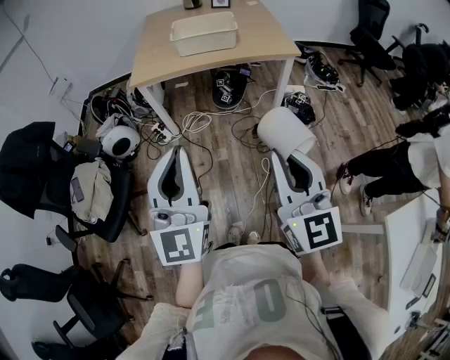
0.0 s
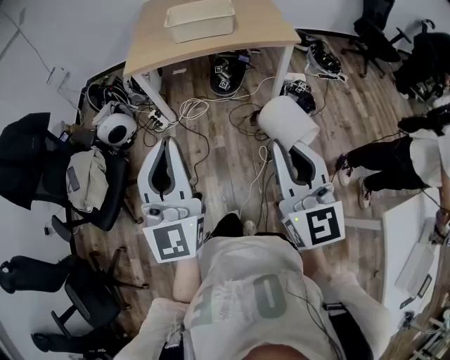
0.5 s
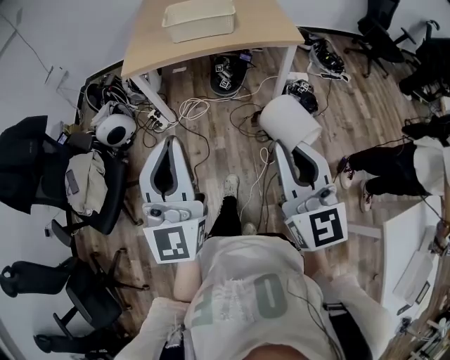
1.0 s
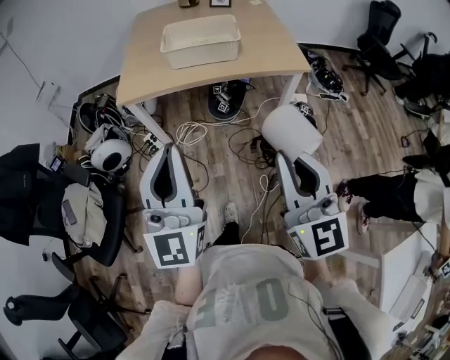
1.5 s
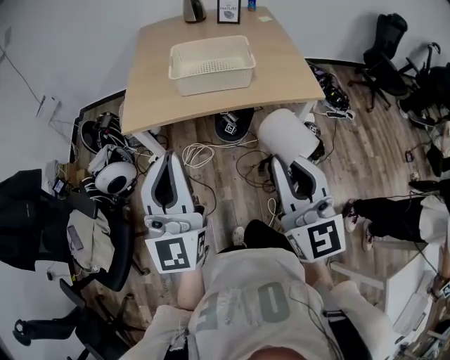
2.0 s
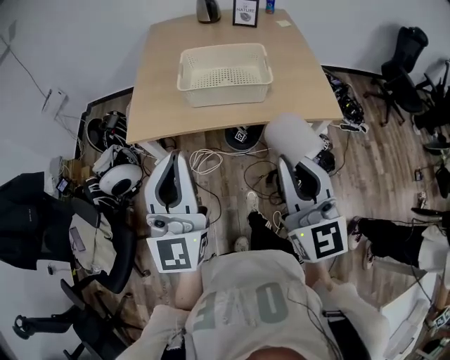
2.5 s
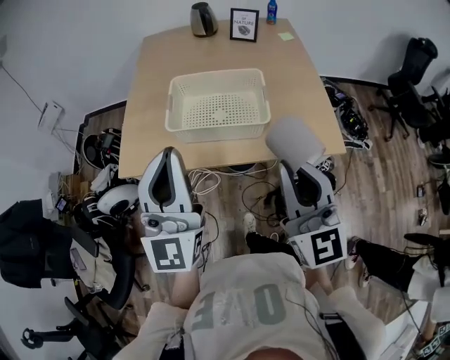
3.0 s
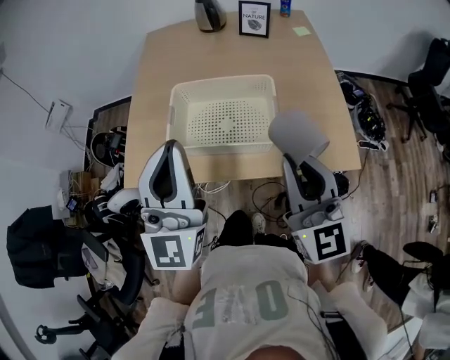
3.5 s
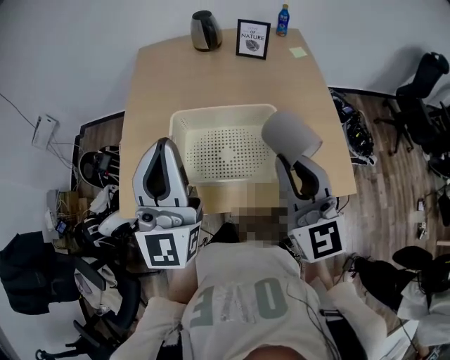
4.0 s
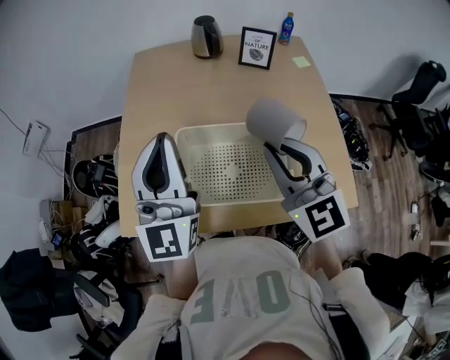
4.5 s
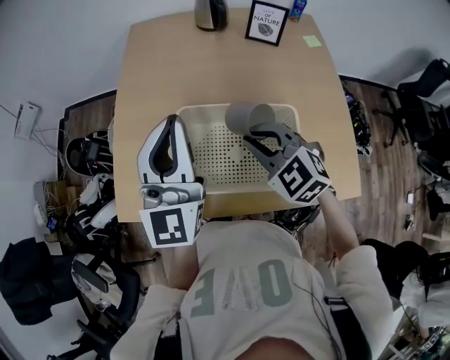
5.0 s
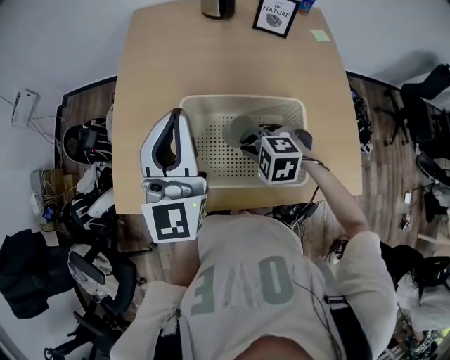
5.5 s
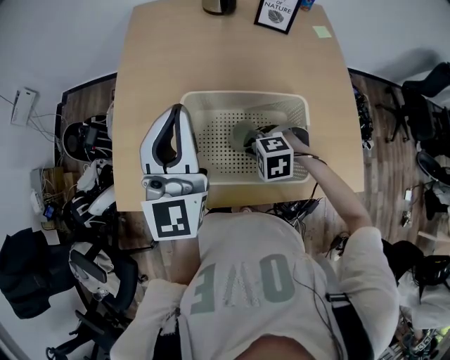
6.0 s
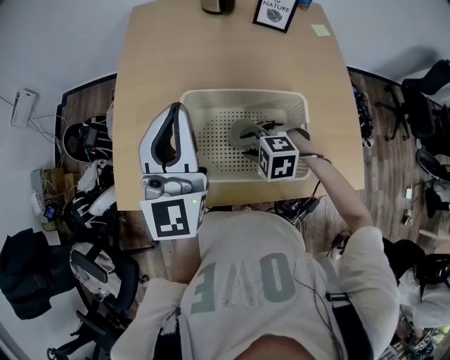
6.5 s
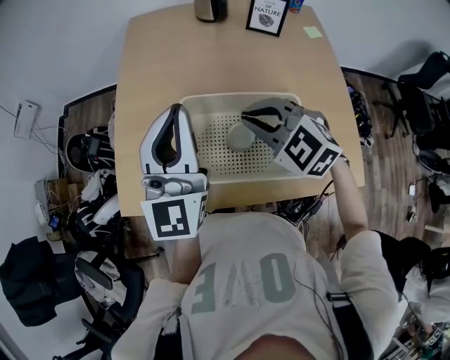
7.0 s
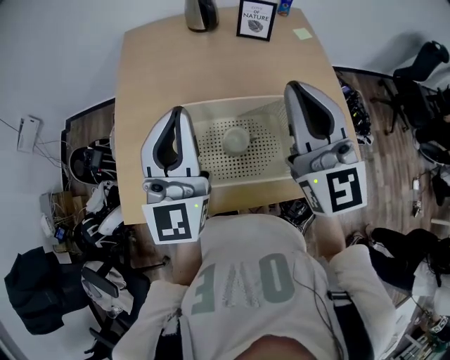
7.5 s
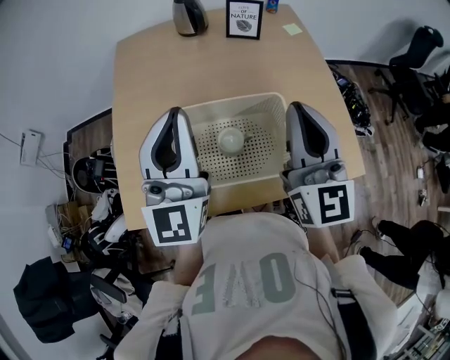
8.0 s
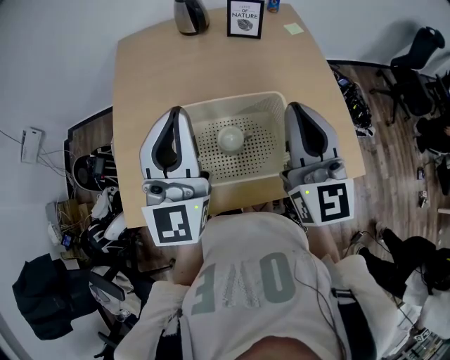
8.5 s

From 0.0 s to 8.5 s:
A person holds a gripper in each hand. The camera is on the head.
From 0.0 s to 2.0 s: Both grippers travel together forward, approximately 30 cm.
From 2.0 s to 4.0 s: Both grippers are carried forward, about 50 cm.
From 4.0 s to 6.5 s: The left gripper ends up about 15 cm from where it was, while the right gripper shifts about 30 cm downward, points its fingers some 70 degrees further downward, and opens its fingers.
From 6.5 s to 8.5 s: The left gripper changes place by roughly 10 cm, while the right gripper moves upward, approximately 30 cm, tilts its fingers about 80 degrees upward, and closes.

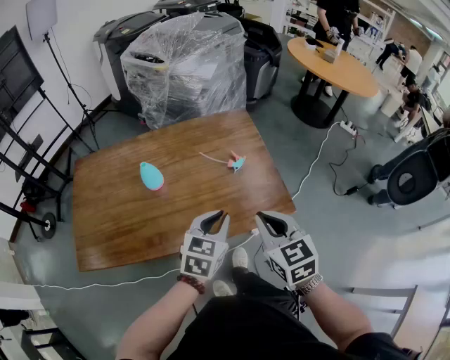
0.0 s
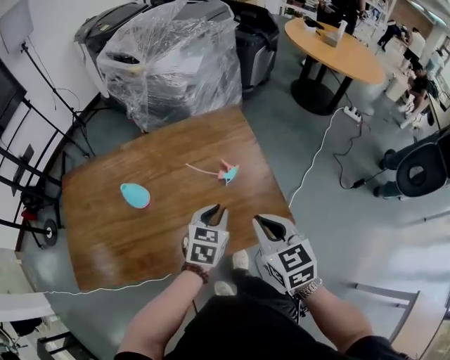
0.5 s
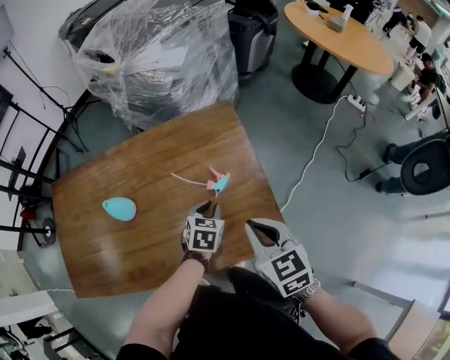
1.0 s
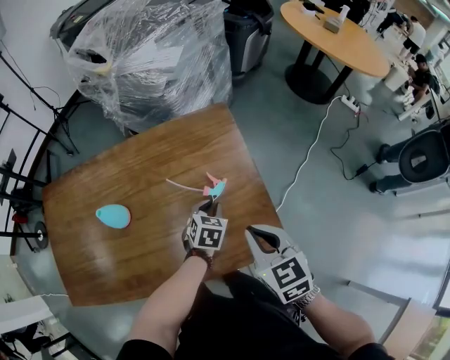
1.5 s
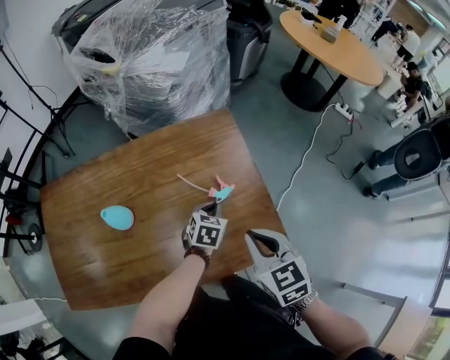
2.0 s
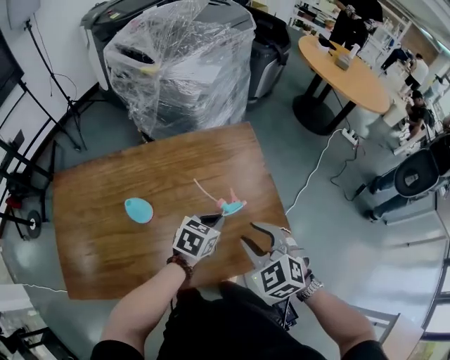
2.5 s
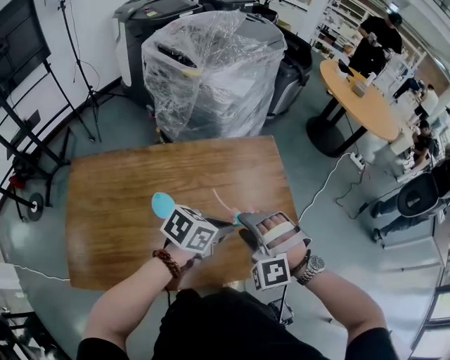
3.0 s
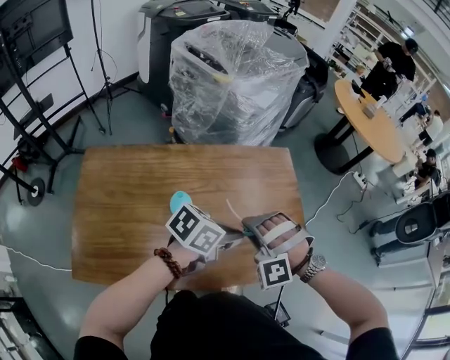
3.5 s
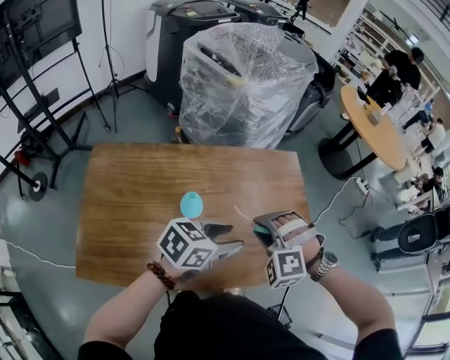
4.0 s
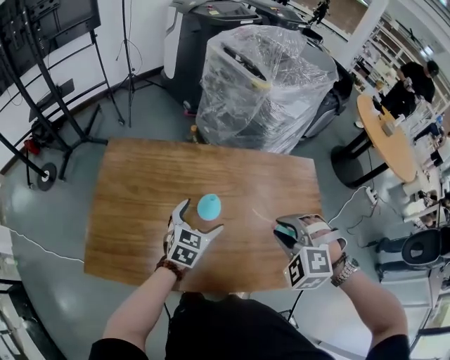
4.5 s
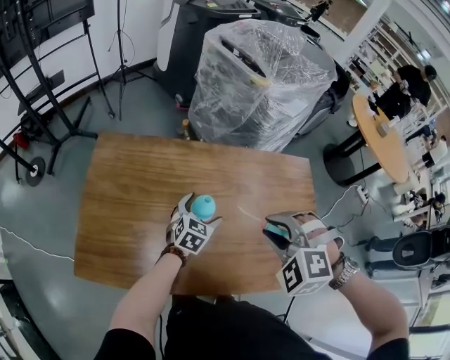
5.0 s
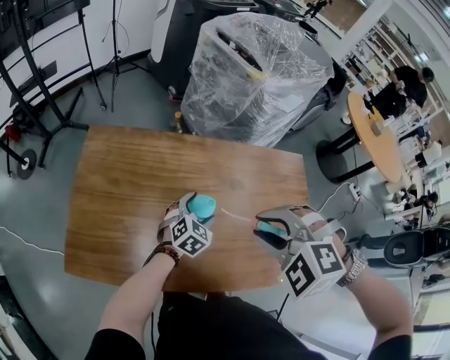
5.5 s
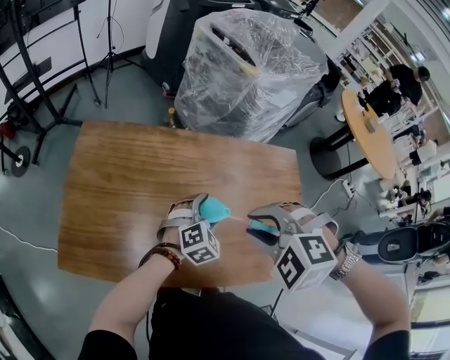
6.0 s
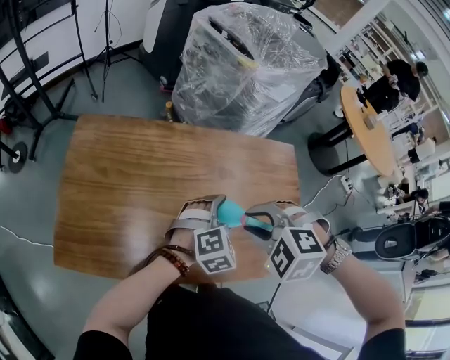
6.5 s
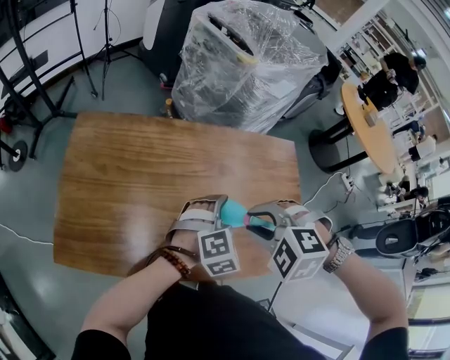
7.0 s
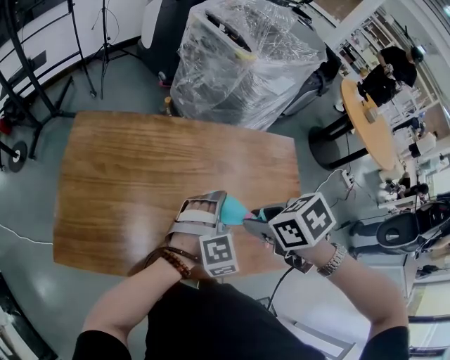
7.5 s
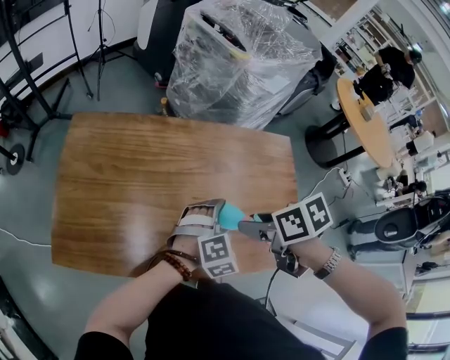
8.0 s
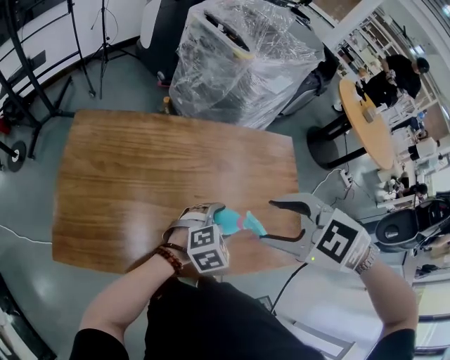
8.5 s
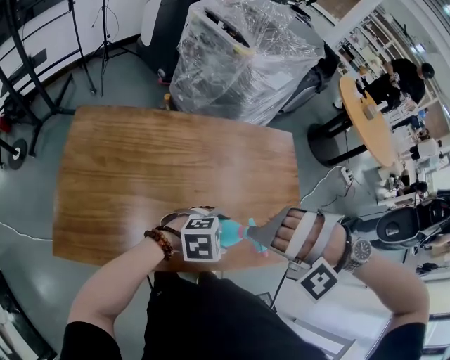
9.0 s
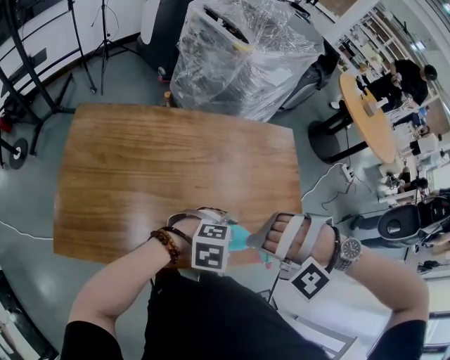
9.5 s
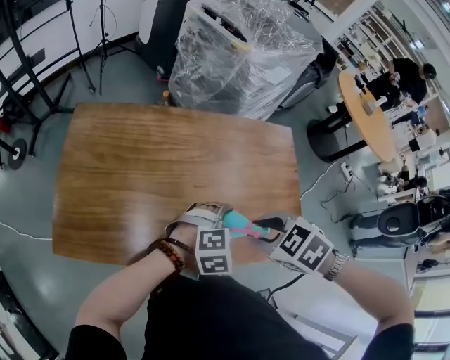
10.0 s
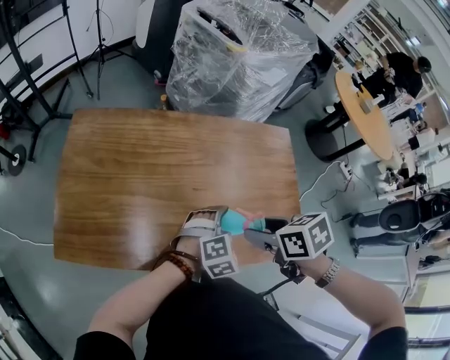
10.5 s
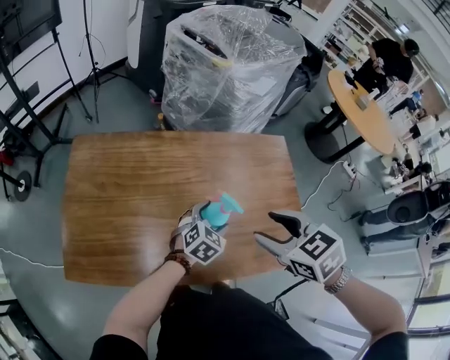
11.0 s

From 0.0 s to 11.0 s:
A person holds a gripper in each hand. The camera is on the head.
From 0.0 s to 2.0 s: The right gripper travels forward and downward by roughly 15 cm. The left gripper moves forward and downward, approximately 30 cm.
From 2.0 s to 3.5 s: The right gripper goes about 20 cm to the left, twists some 100 degrees counterclockwise, seen from behind, and opens its fingers; the left gripper moves upward, backward and to the left, approximately 25 cm, and rotates about 40 degrees.
From 3.5 s to 5.5 s: The right gripper is displaced upward by approximately 10 cm, and swivels some 30 degrees; the left gripper ends up about 25 cm from where it was, swivels roughly 60 degrees, and opens up.
From 5.5 s to 7.5 s: The left gripper is displaced upward, to the right and backward by about 15 cm, and swivels about 40 degrees. Meanwhile the right gripper shifts about 10 cm downward and to the right, and twists approximately 70 degrees clockwise, seen from behind.
From 7.5 s to 9.0 s: The right gripper travels upward and back again, about 10 cm each way, rolls counterclockwise, seen from behind, by some 120 degrees, and opens up, while the left gripper moves approximately 10 cm, and swivels some 50 degrees.
From 9.0 s to 11.0 s: The left gripper ends up roughly 10 cm from where it was, and changes its angle by some 40 degrees. Meanwhile the right gripper moves approximately 10 cm, rolls clockwise, seen from behind, by roughly 110 degrees, and closes, then reopens.

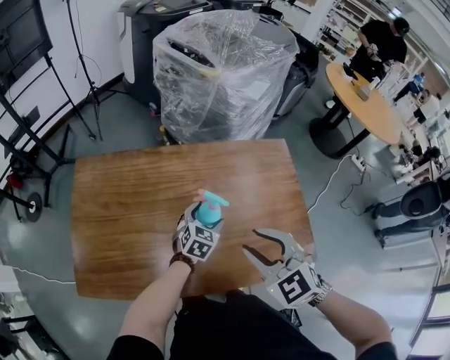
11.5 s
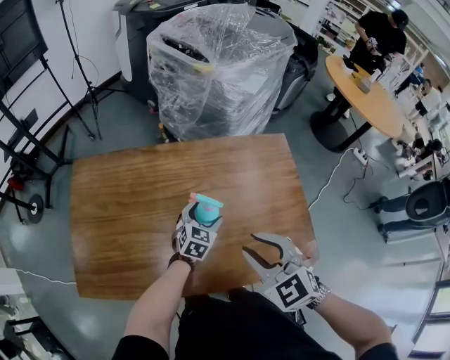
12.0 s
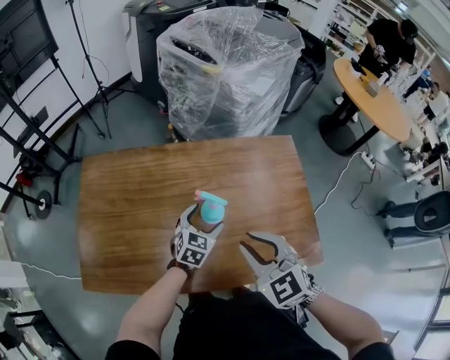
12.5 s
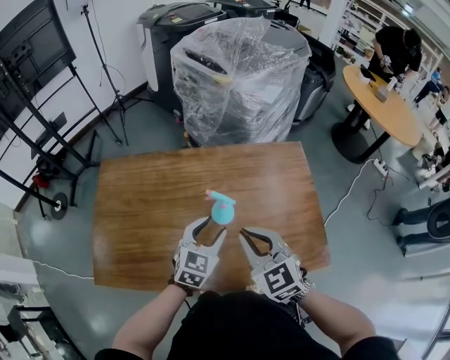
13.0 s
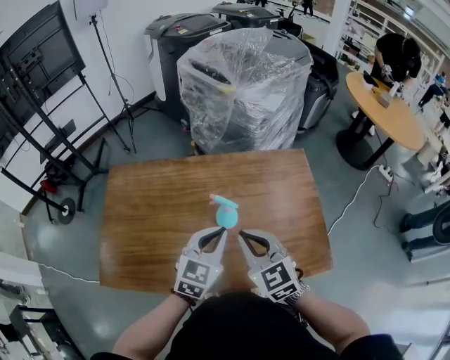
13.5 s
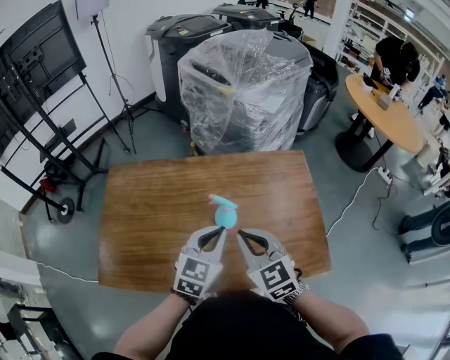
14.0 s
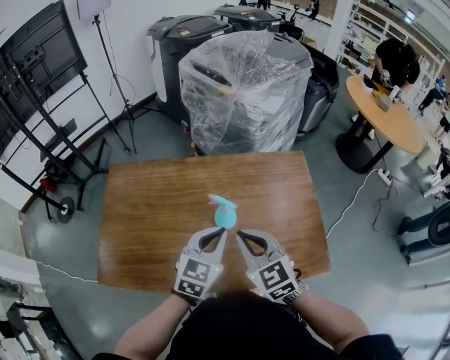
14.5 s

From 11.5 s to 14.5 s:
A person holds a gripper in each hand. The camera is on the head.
From 11.5 s to 13.0 s: The right gripper closes up; the left gripper travels upward and backward by approximately 15 cm.
From 13.0 s to 14.5 s: The left gripper travels upward by approximately 5 cm, and closes.

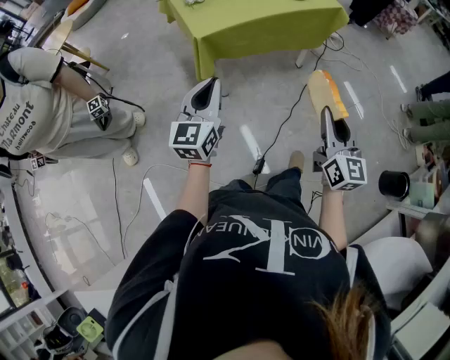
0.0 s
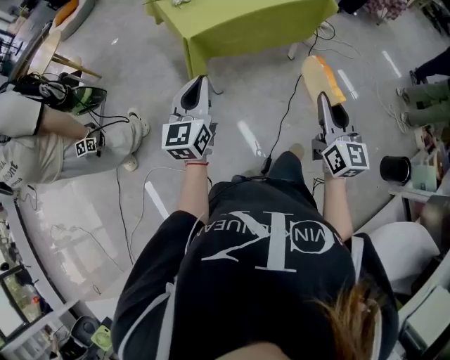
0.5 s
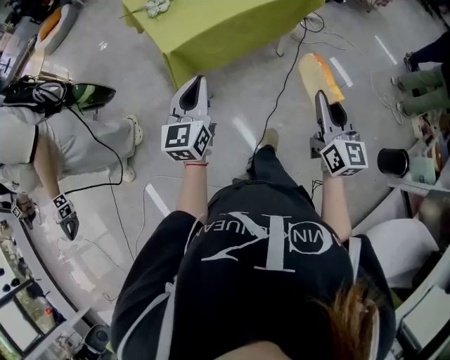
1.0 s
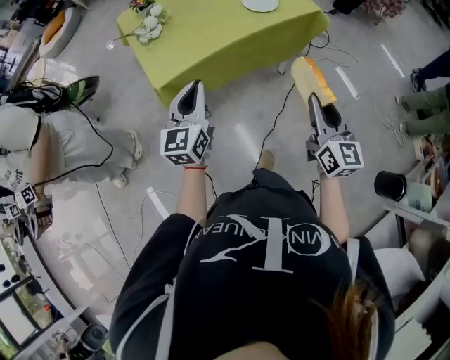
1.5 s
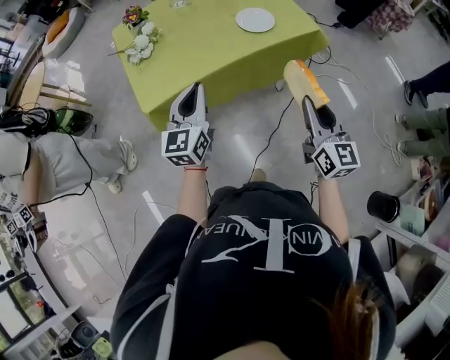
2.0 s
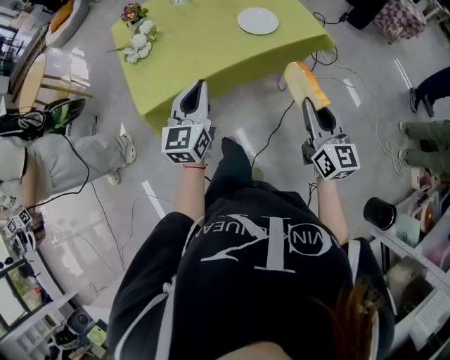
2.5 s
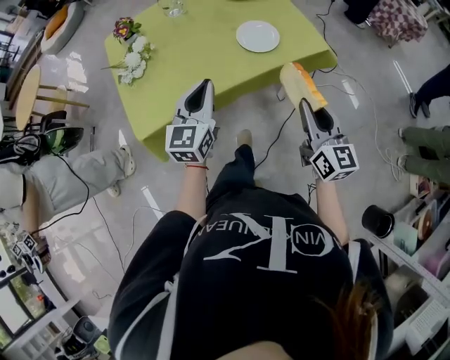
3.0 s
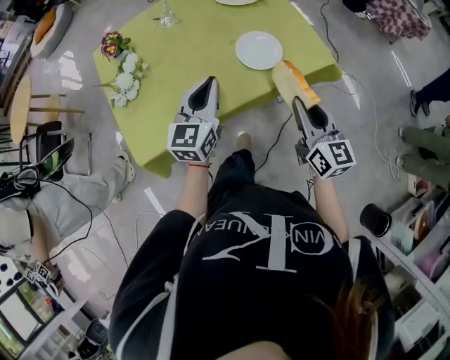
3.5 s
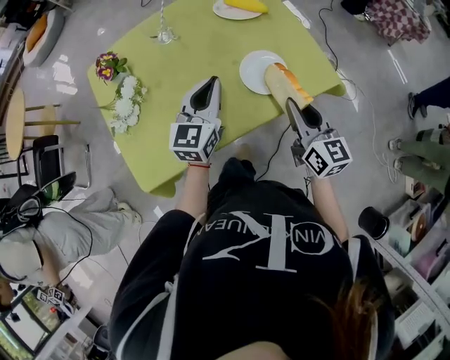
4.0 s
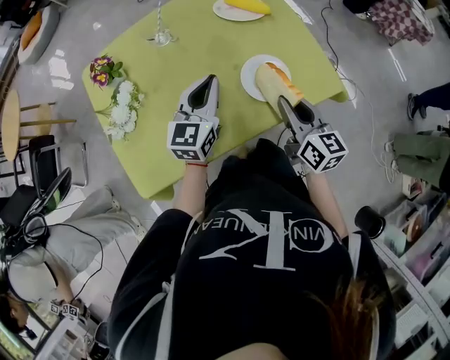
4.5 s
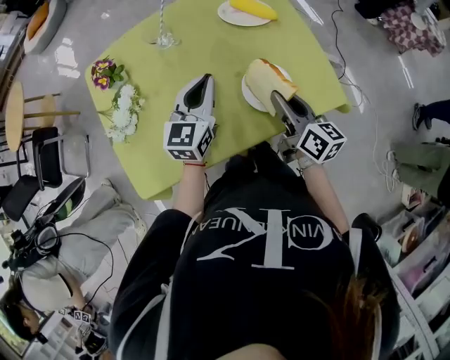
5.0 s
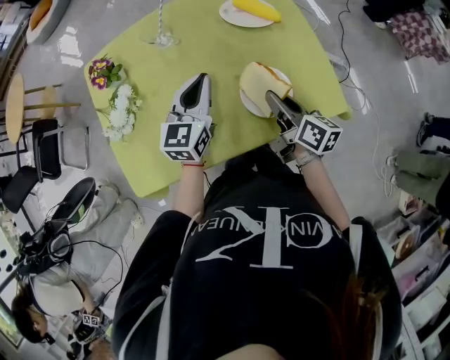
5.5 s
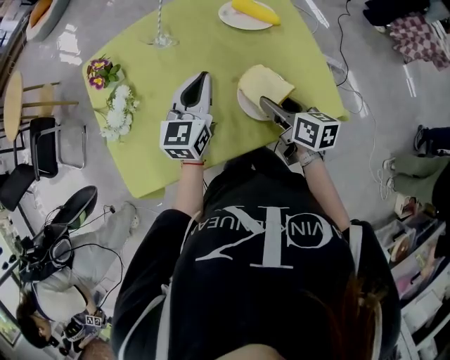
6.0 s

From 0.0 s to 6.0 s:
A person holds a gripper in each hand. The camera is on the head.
From 0.0 s to 2.0 s: The left gripper is displaced forward and to the right by some 35 cm, while the right gripper shifts roughly 30 cm forward.
From 2.0 s to 4.0 s: Both grippers travel together forward, roughly 35 cm.
From 4.0 s to 6.0 s: The right gripper moves forward and downward, approximately 15 cm, swivels roughly 40 degrees, and opens. The left gripper travels forward by approximately 10 cm.
